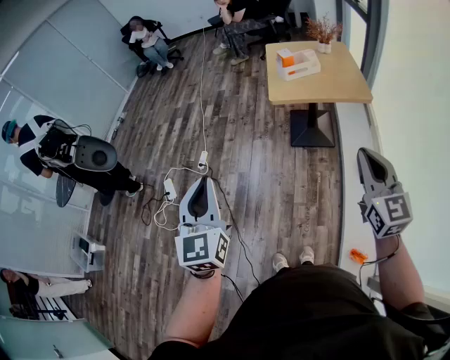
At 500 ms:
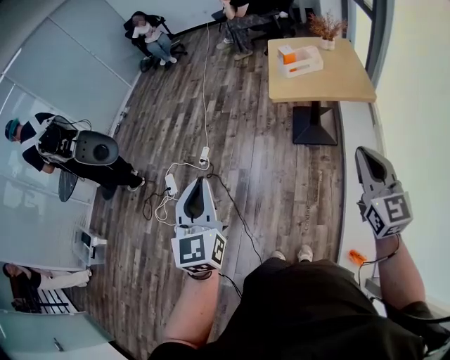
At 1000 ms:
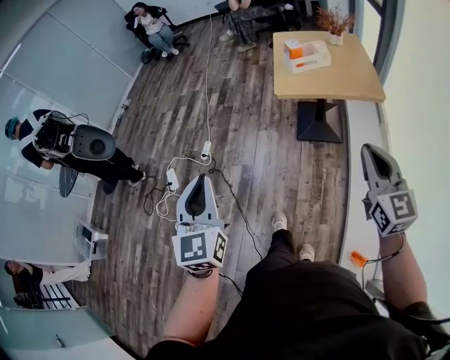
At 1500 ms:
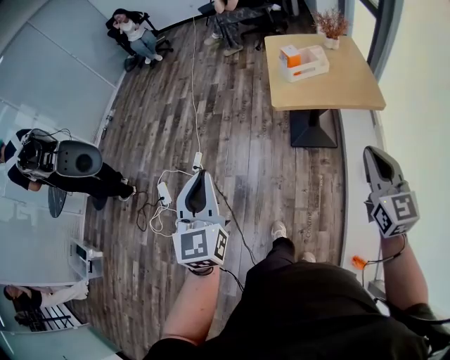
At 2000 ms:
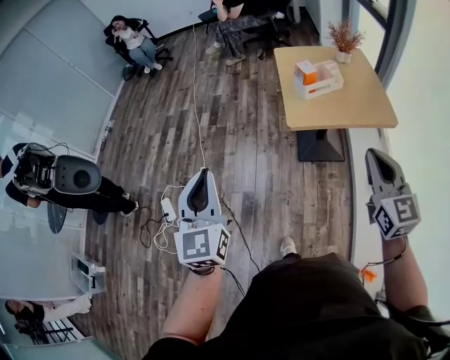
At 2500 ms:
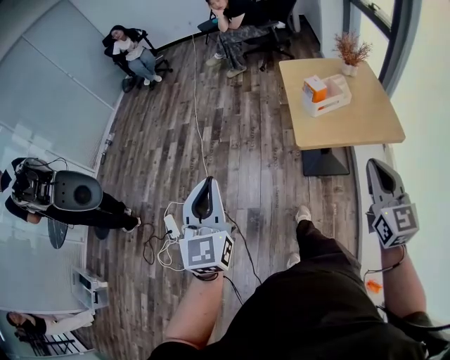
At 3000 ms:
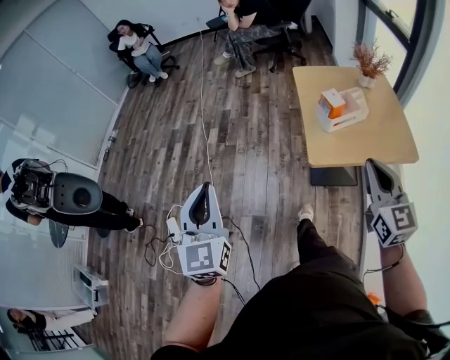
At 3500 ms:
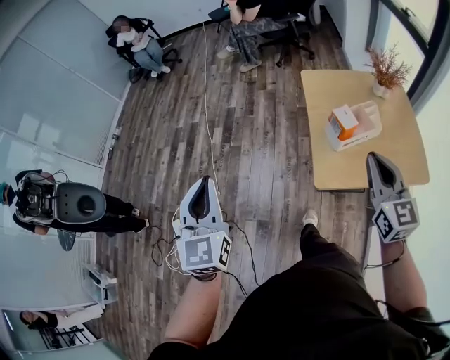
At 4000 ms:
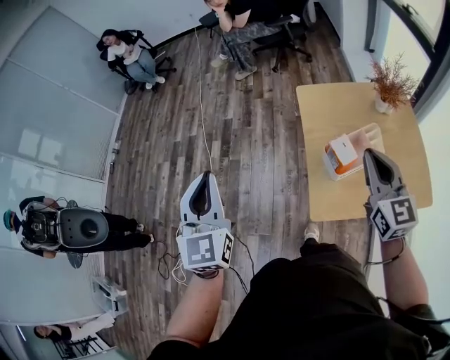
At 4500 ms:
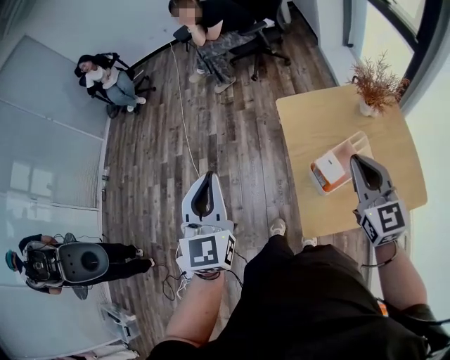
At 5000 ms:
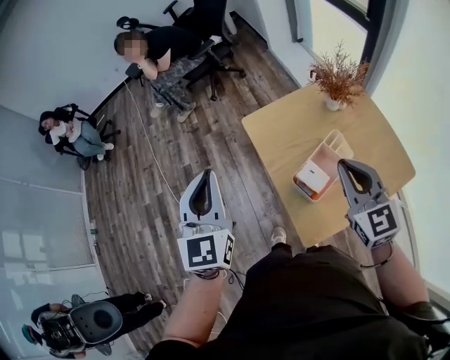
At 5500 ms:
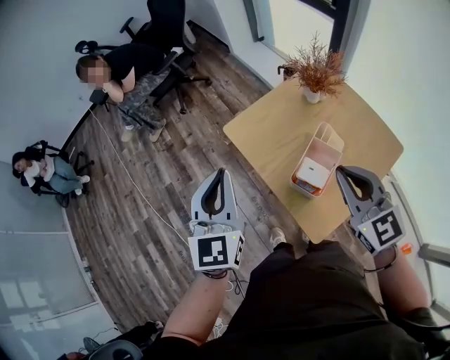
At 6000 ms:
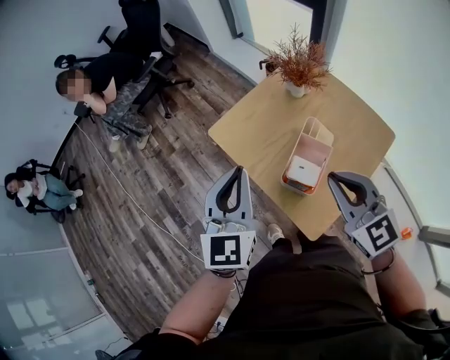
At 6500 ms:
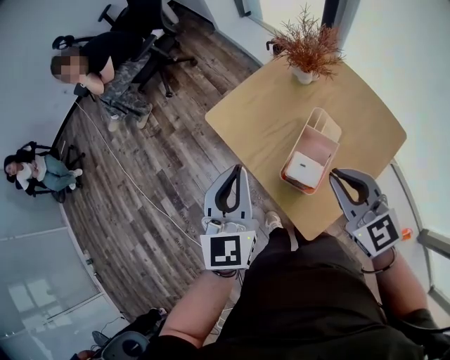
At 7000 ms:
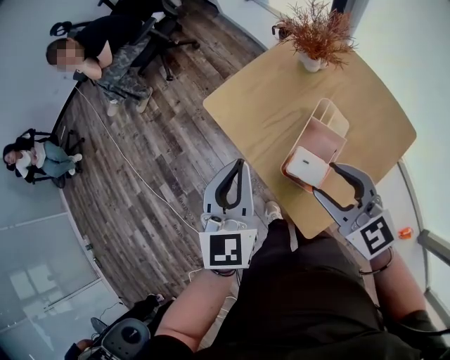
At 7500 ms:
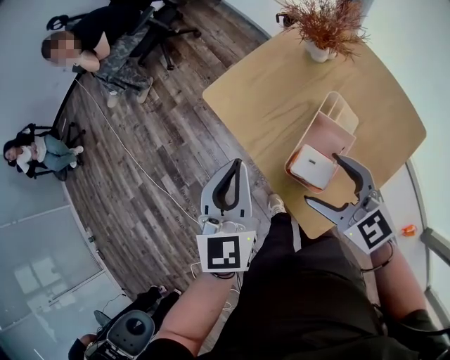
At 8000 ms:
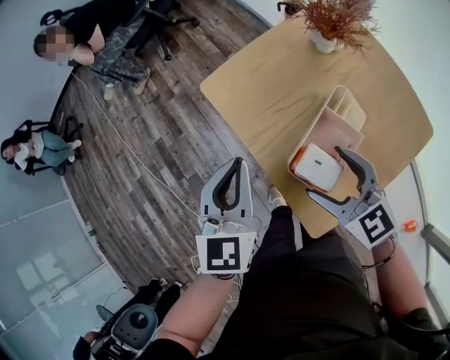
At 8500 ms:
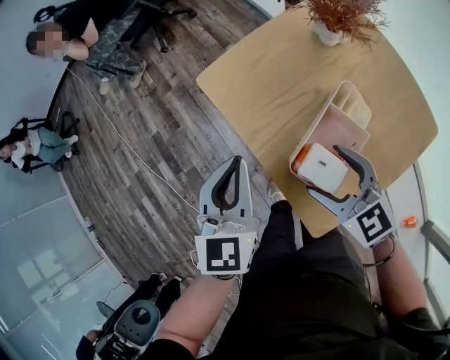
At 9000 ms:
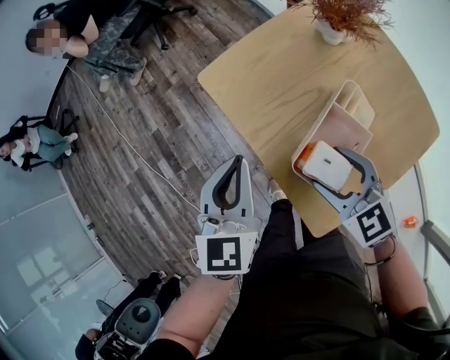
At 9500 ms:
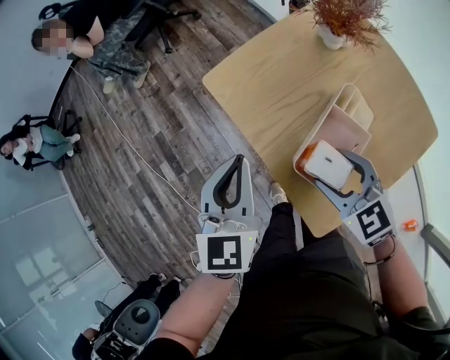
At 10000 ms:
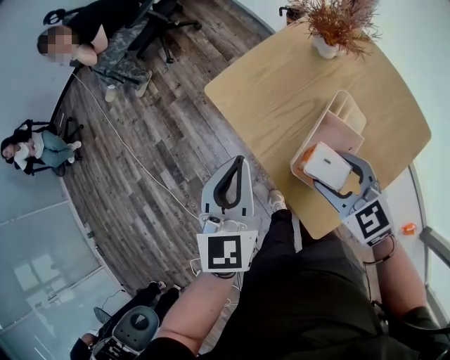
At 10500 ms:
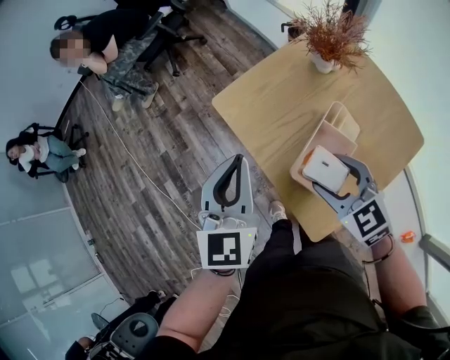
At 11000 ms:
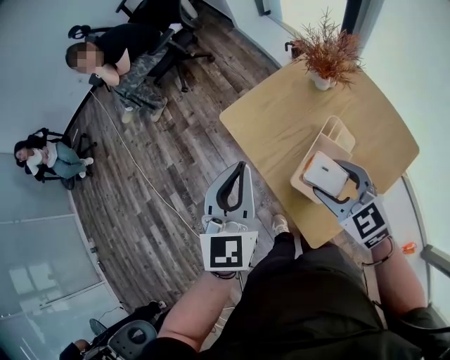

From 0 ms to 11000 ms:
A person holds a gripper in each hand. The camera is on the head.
From 0 ms to 2000 ms: Both grippers move forward, some 25 cm.
From 2000 ms to 3500 ms: Both grippers travel together forward, about 30 cm.
From 3500 ms to 5500 ms: The left gripper changes place by some 40 cm, and turns by some 40 degrees, while the right gripper changes place by some 15 cm, and swivels roughly 20 degrees.
From 5500 ms to 7500 ms: The right gripper shifts roughly 15 cm downward, and opens its fingers. Meanwhile the left gripper shifts roughly 15 cm downward and to the right.
From 7500 ms to 9000 ms: The right gripper heads downward, covering about 5 cm. The left gripper ends up roughly 5 cm from where it was.
From 9000 ms to 11000 ms: The two grippers go some 10 cm upward.

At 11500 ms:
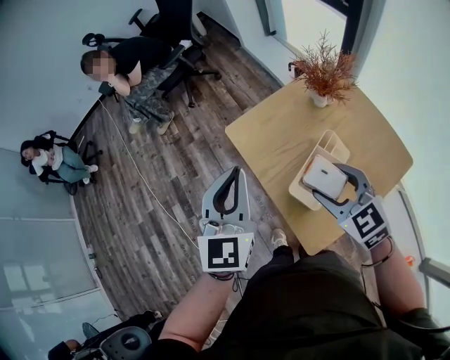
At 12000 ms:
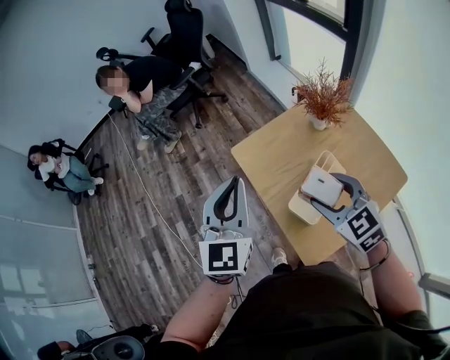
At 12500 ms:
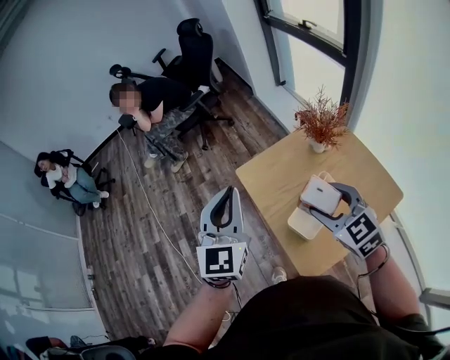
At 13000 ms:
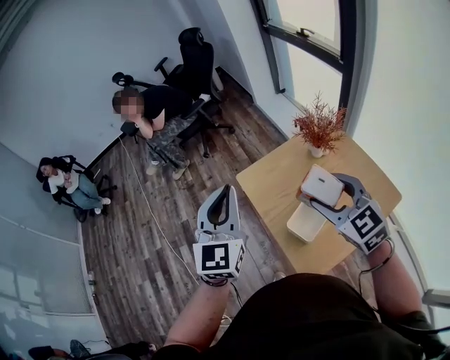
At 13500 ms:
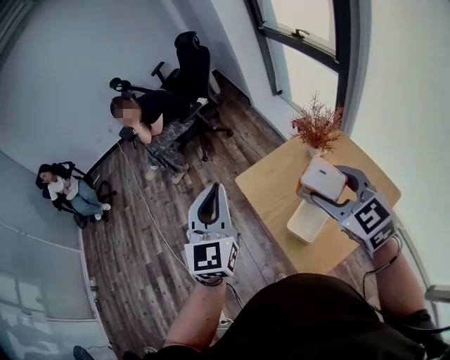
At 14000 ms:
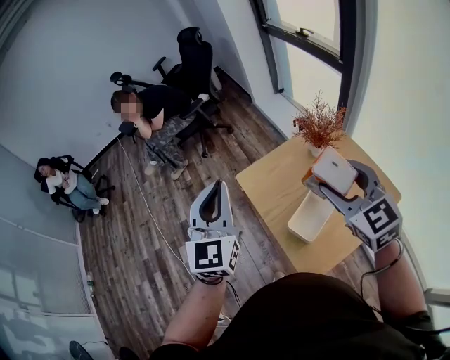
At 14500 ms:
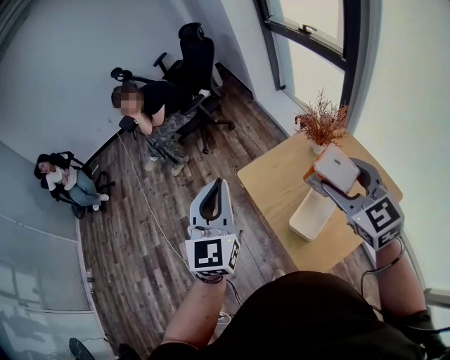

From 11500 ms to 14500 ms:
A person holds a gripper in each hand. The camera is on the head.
From 11500 ms to 13000 ms: Both grippers travel together upward, roughly 10 cm.
From 13000 ms to 14500 ms: The right gripper changes place by approximately 5 cm.

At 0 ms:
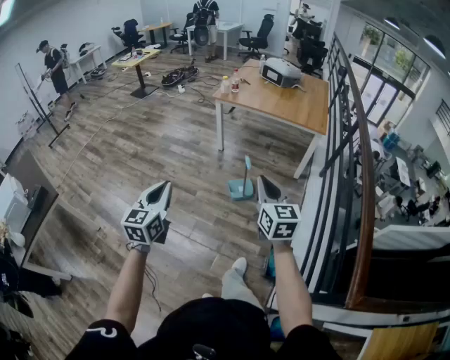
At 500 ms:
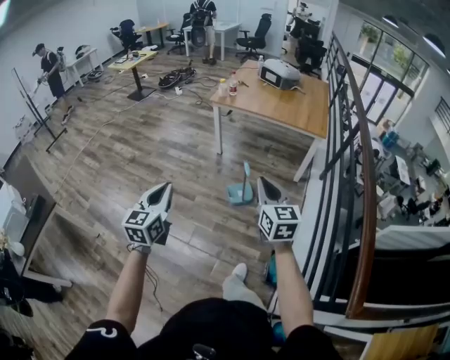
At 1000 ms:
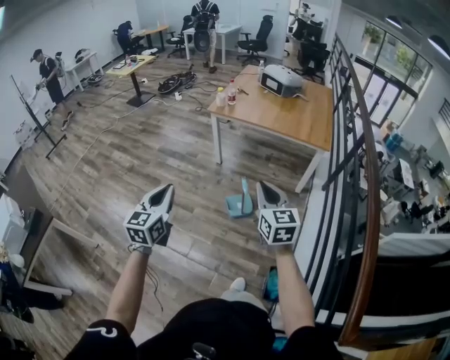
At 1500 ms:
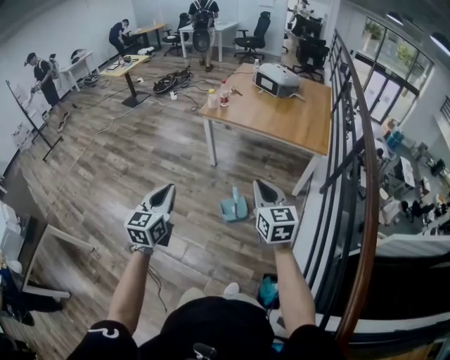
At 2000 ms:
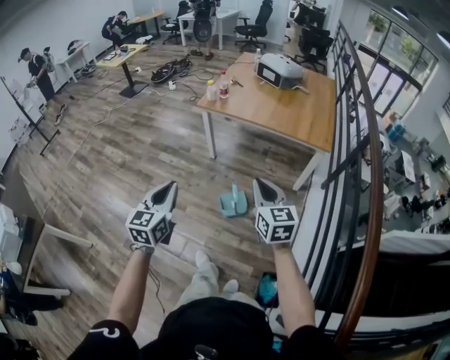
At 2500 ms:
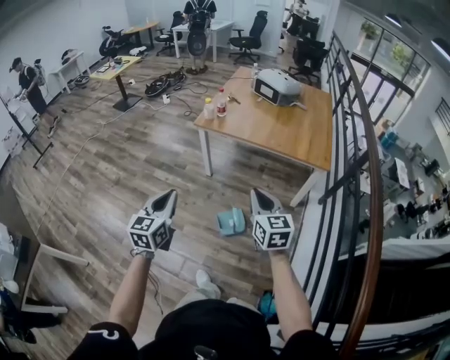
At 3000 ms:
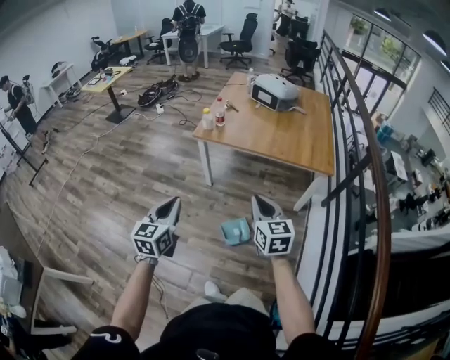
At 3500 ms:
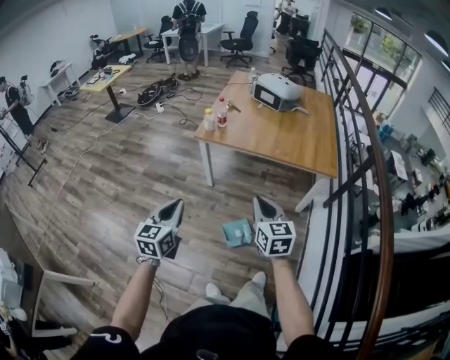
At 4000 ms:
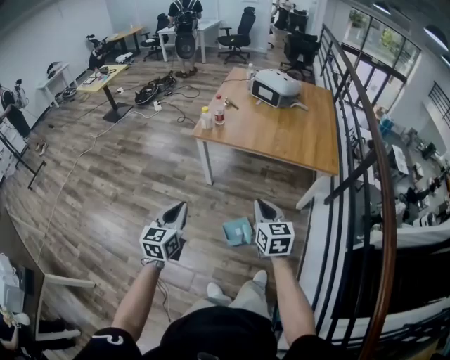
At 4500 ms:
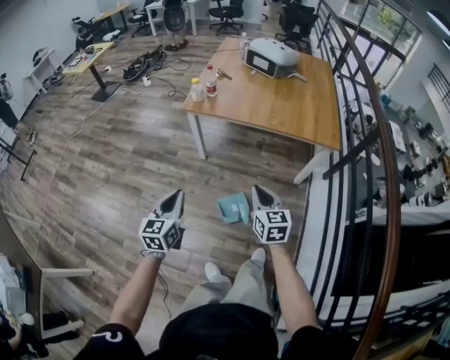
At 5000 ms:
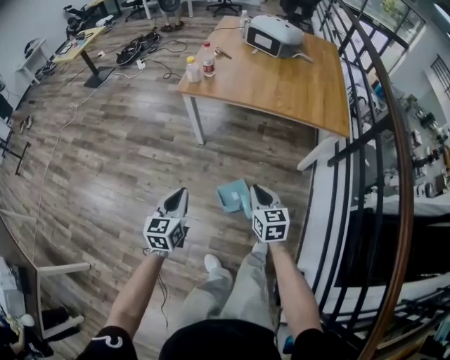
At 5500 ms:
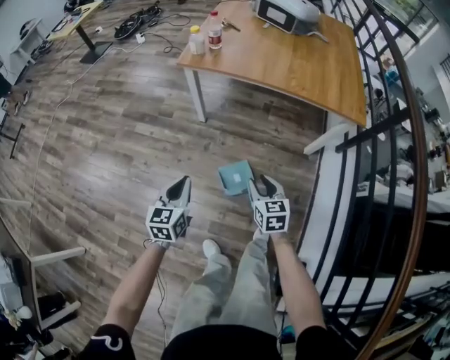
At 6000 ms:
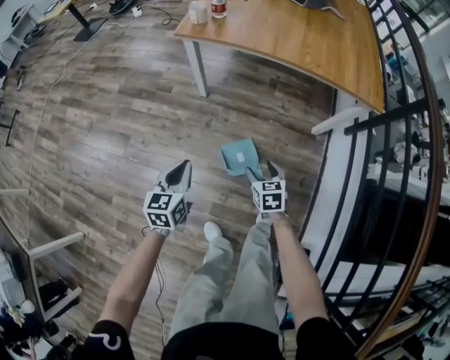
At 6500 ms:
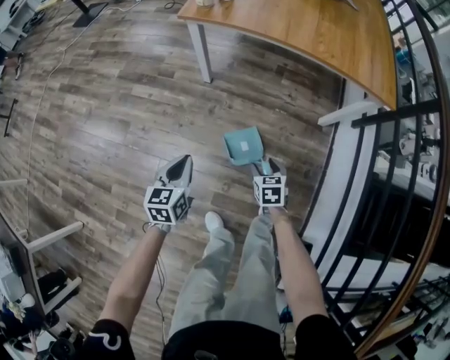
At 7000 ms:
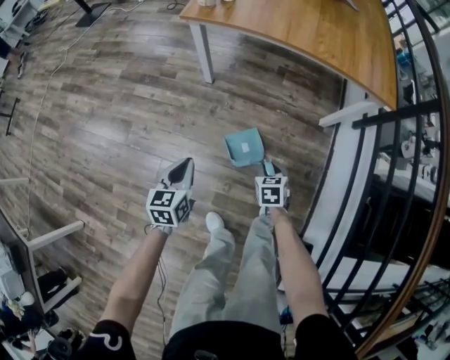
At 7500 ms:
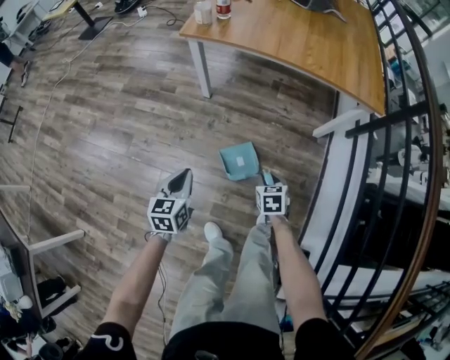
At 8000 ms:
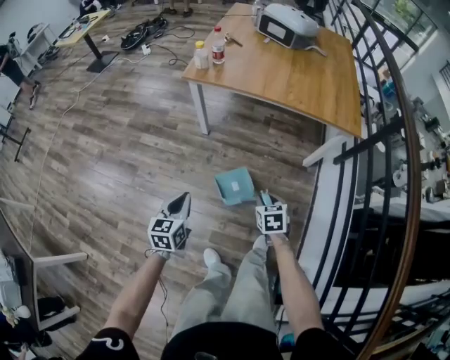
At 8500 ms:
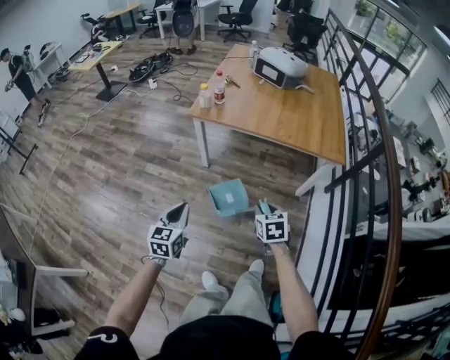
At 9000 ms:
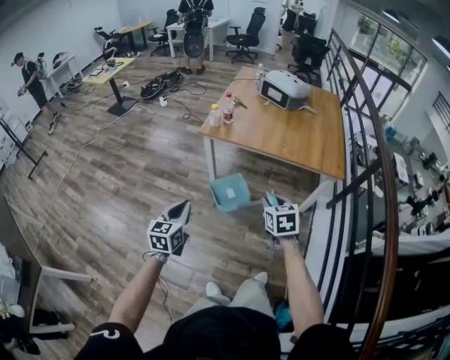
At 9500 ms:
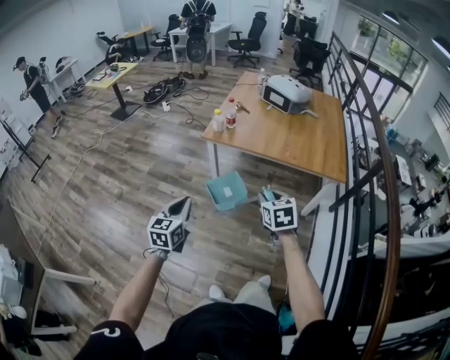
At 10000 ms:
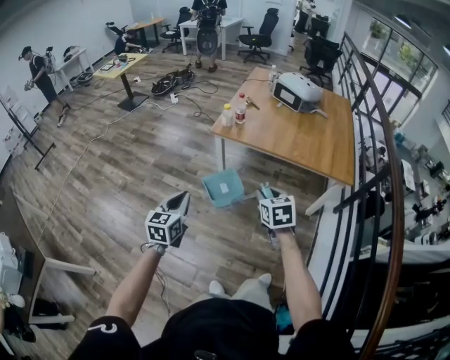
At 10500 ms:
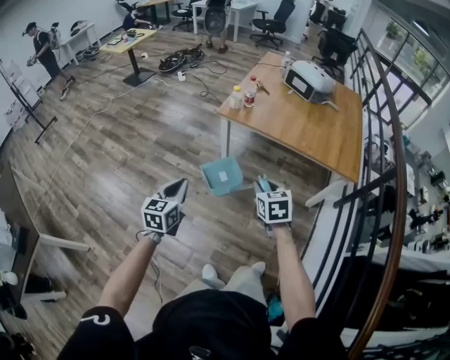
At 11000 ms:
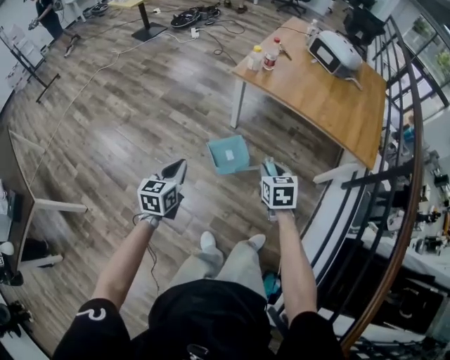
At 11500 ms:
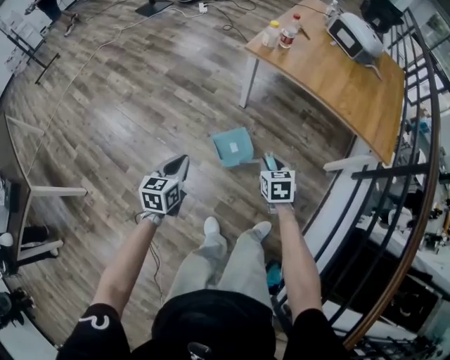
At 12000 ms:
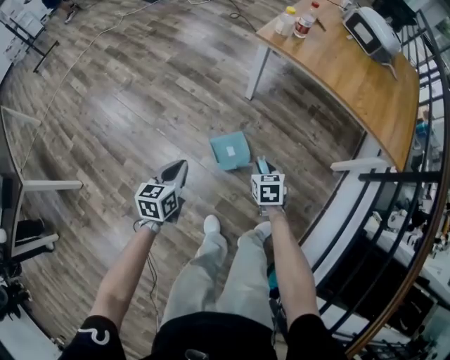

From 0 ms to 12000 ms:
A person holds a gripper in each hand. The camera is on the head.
From 0 ms to 2000 ms: The two grippers go roughly 30 cm forward.
From 2000 ms to 4000 ms: The grippers both shift forward by roughly 20 cm.
From 4000 ms to 6000 ms: The grippers both shift downward by some 35 cm. The right gripper rotates roughly 30 degrees, and opens up.
From 6000 ms to 8000 ms: The left gripper is displaced upward and backward by approximately 10 cm; the right gripper goes roughly 10 cm upward, and closes up.
From 8000 ms to 10000 ms: The two grippers go some 25 cm upward.
From 10000 ms to 12000 ms: The two grippers go about 30 cm downward. The left gripper rotates some 20 degrees.

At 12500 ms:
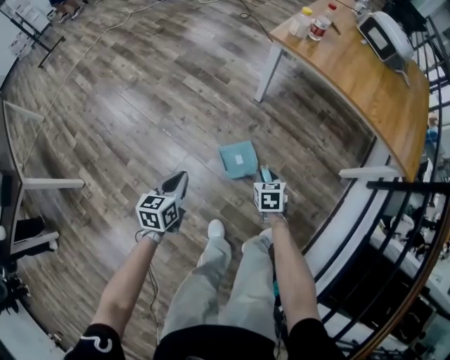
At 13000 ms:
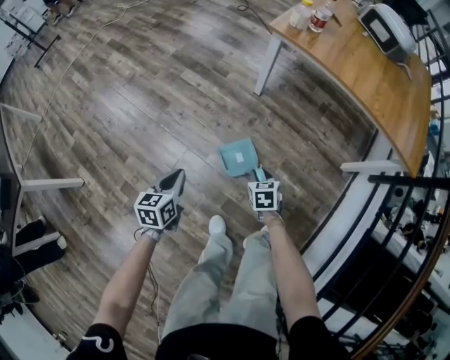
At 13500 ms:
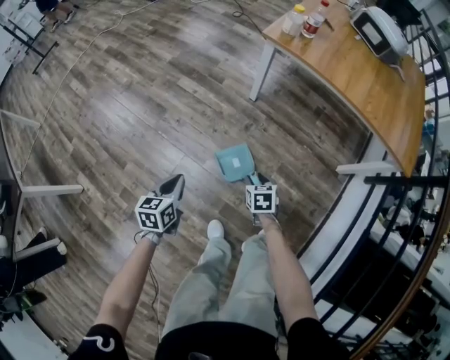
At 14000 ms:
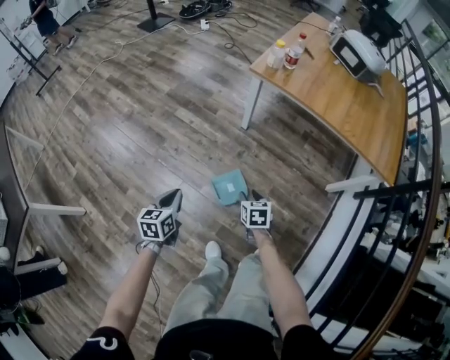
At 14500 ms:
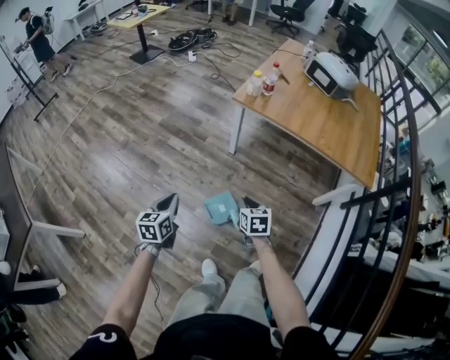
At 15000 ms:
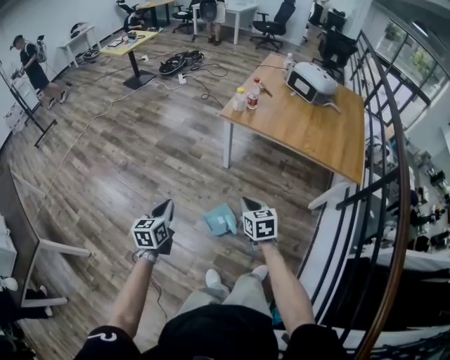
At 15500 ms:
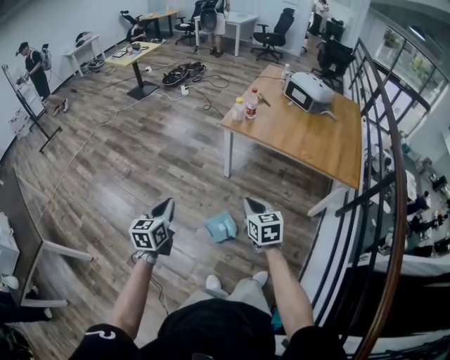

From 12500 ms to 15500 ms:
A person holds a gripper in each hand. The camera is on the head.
From 12500 ms to 14000 ms: The grippers both shift upward by approximately 5 cm.
From 14000 ms to 15500 ms: Both grippers move upward, roughly 30 cm. The right gripper swivels some 20 degrees, and closes up.
